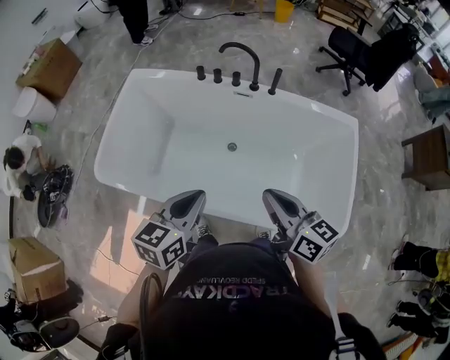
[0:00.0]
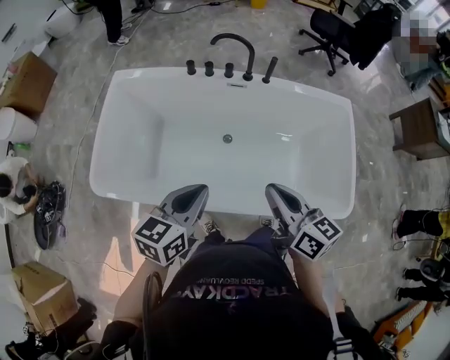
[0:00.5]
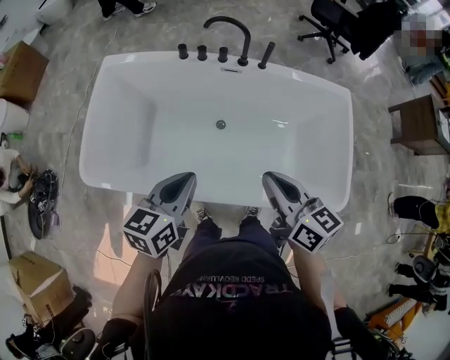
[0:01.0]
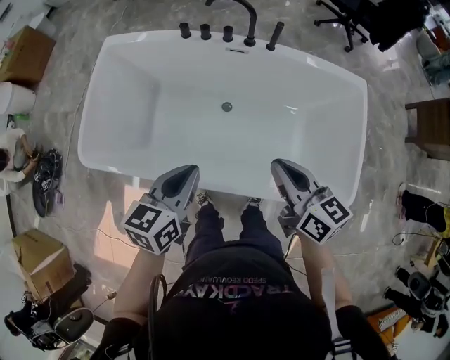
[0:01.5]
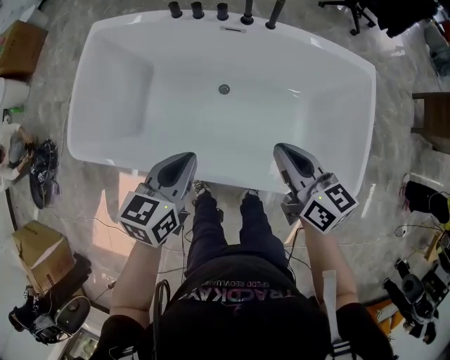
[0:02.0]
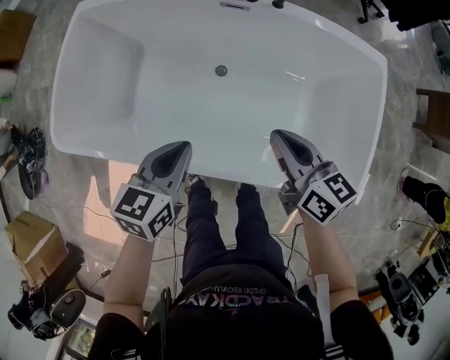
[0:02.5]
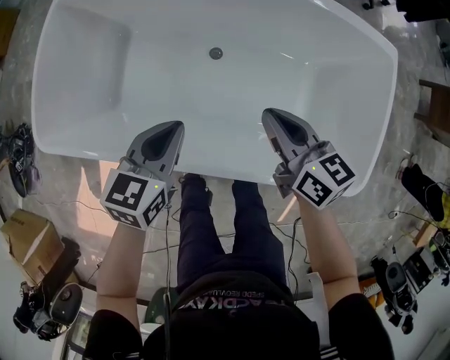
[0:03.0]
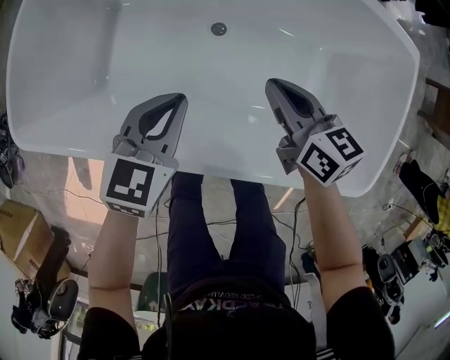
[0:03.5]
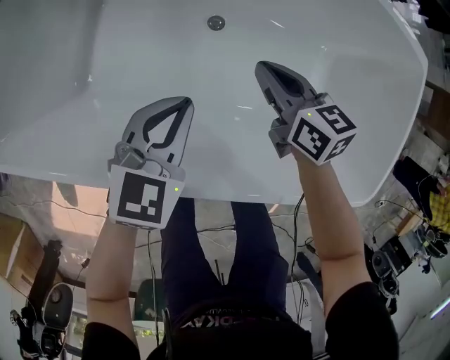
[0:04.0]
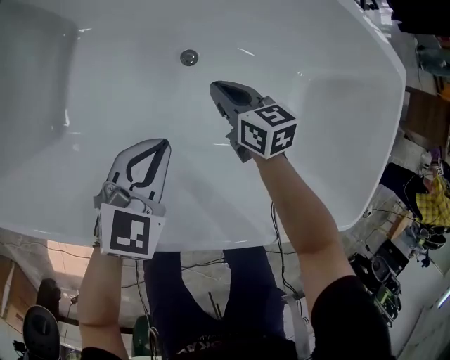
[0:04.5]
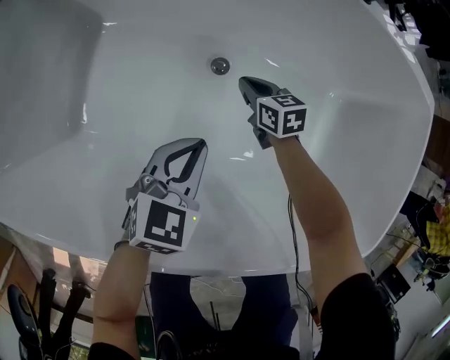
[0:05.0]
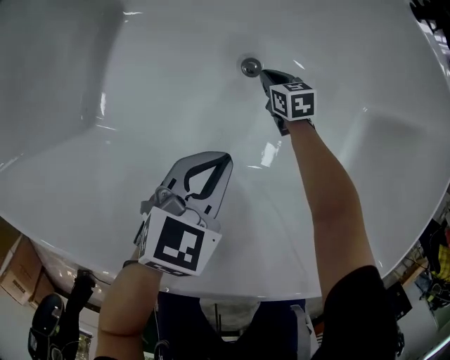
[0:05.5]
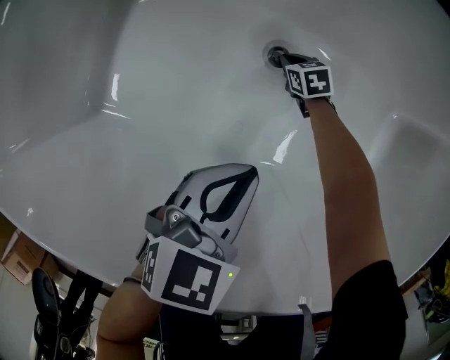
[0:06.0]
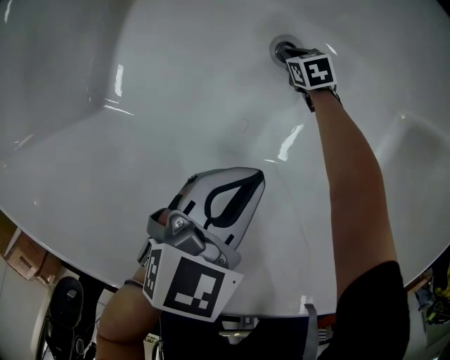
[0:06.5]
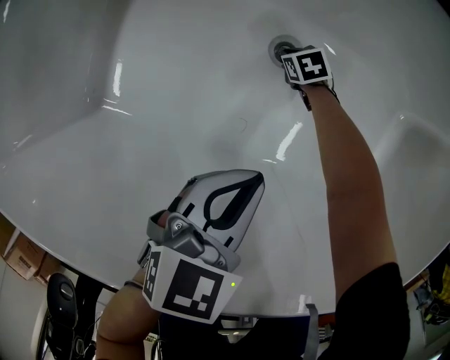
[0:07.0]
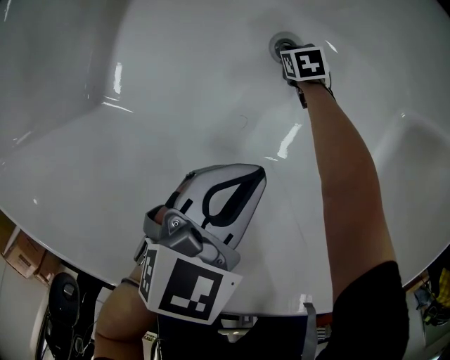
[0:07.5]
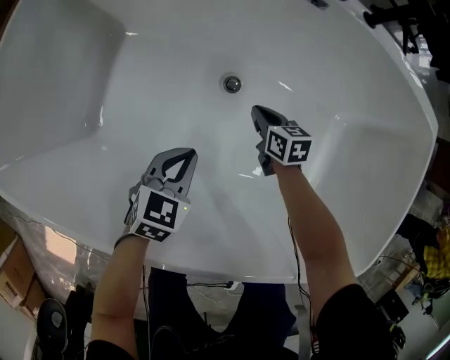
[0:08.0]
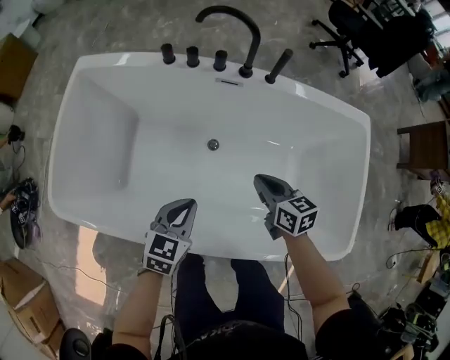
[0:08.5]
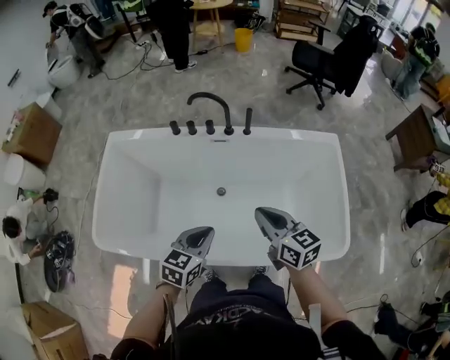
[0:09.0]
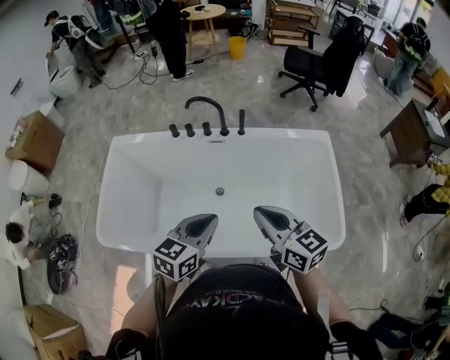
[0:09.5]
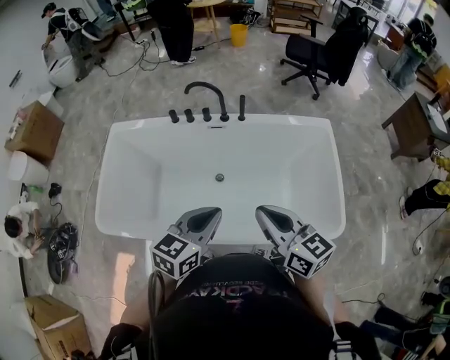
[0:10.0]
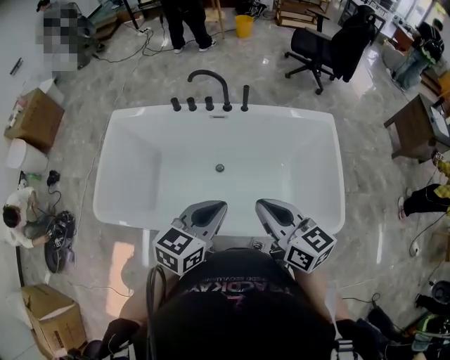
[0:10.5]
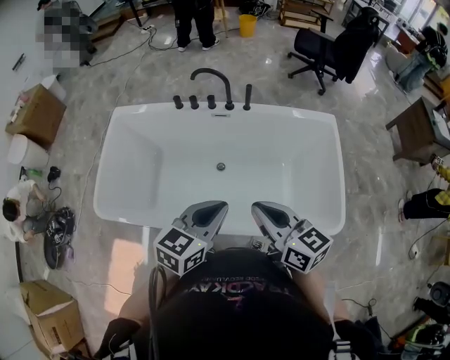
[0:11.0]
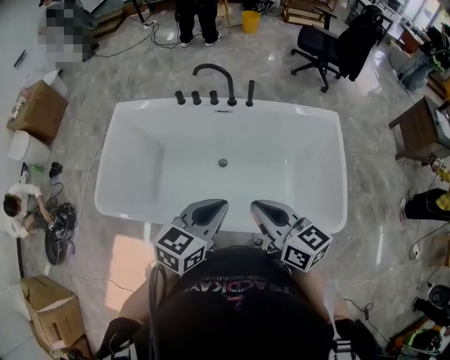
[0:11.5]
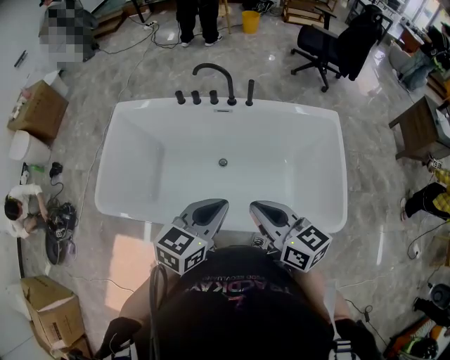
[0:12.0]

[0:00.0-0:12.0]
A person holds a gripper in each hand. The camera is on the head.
0:00.0 to 0:02.0: The two grippers go roughly 5 cm downward.
0:02.0 to 0:04.0: The left gripper travels downward by about 20 cm, and swivels approximately 20 degrees. Meanwhile the right gripper goes roughly 30 cm downward and forward.
0:04.0 to 0:06.0: The left gripper moves downward, about 10 cm. Meanwhile the right gripper moves downward, approximately 40 cm, and rotates approximately 30 degrees.
0:06.0 to 0:08.0: The left gripper changes place by roughly 5 cm; the right gripper heads upward and backward, covering about 20 cm, and swivels some 20 degrees.
0:08.0 to 0:10.0: The right gripper goes about 70 cm upward and backward, and tilts its fingers some 40 degrees upward. The left gripper moves upward, about 50 cm, and swivels approximately 30 degrees.
0:10.0 to 0:12.0: The grippers move only a little.

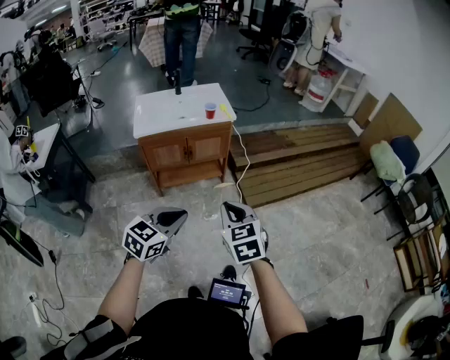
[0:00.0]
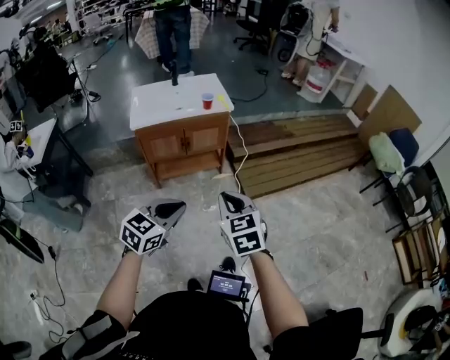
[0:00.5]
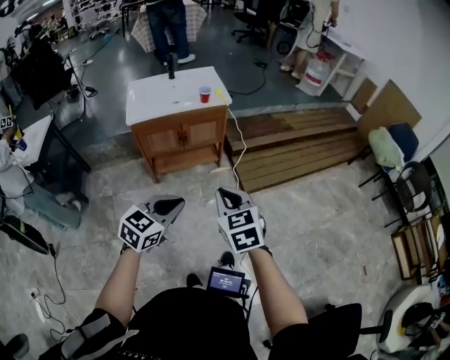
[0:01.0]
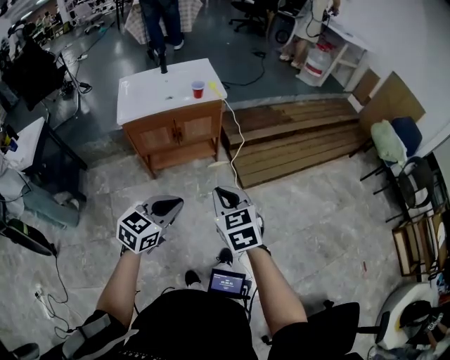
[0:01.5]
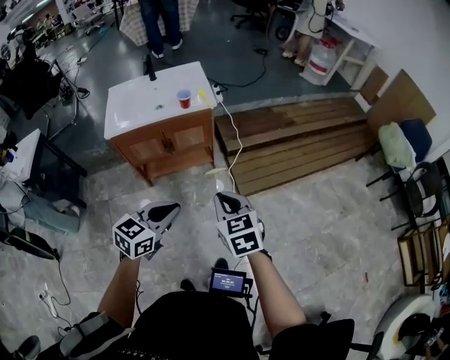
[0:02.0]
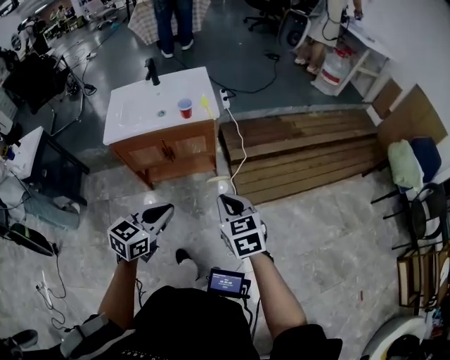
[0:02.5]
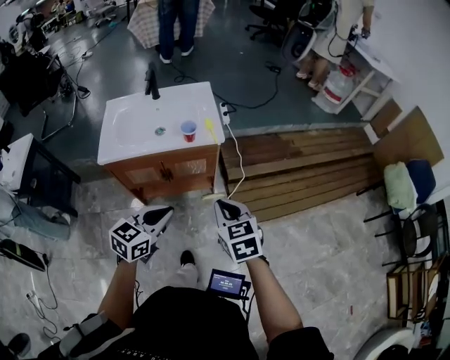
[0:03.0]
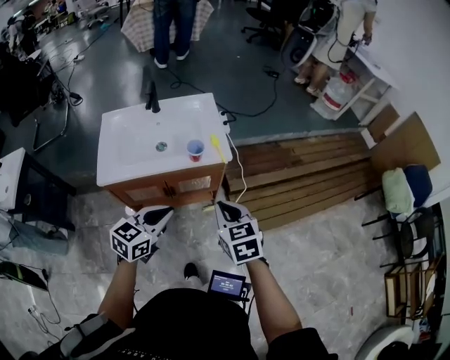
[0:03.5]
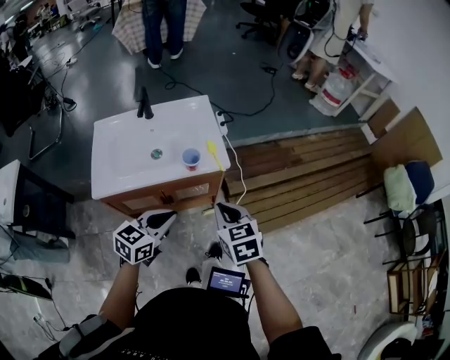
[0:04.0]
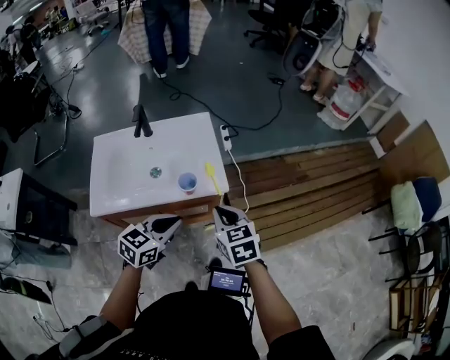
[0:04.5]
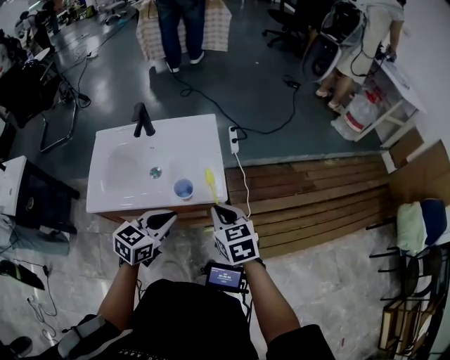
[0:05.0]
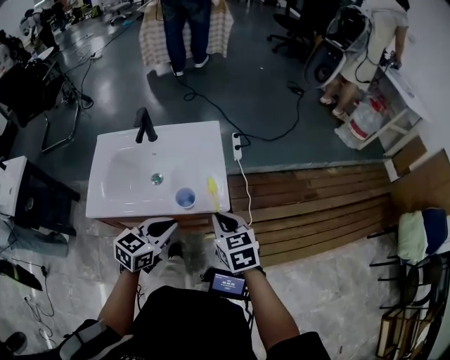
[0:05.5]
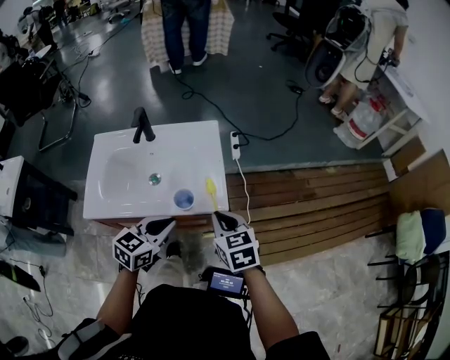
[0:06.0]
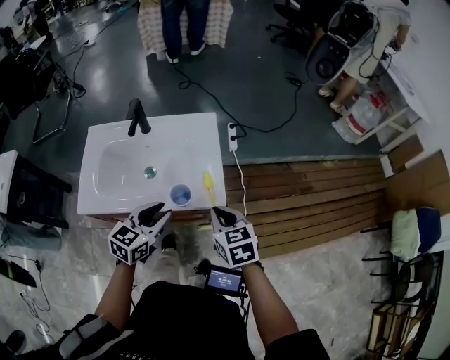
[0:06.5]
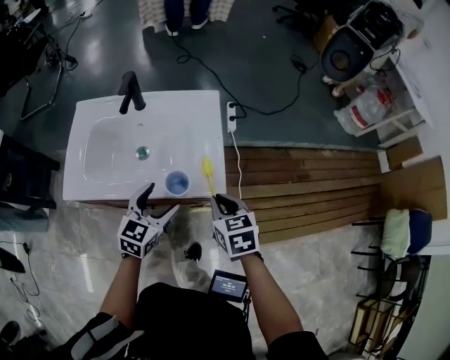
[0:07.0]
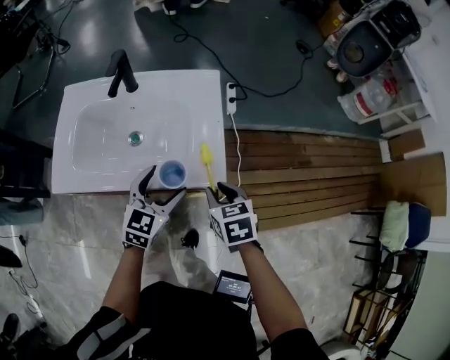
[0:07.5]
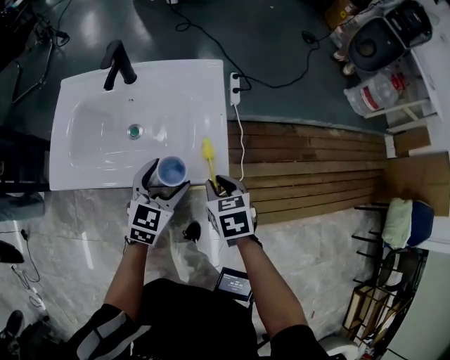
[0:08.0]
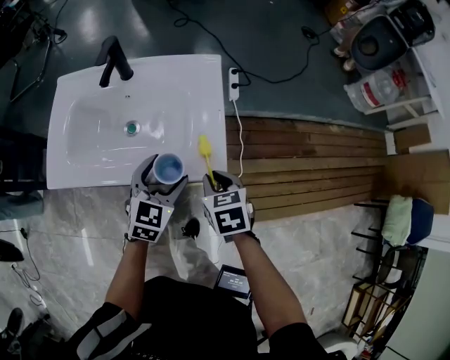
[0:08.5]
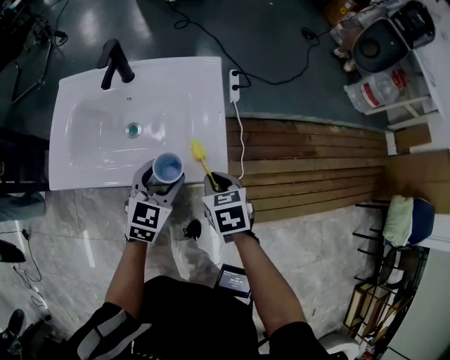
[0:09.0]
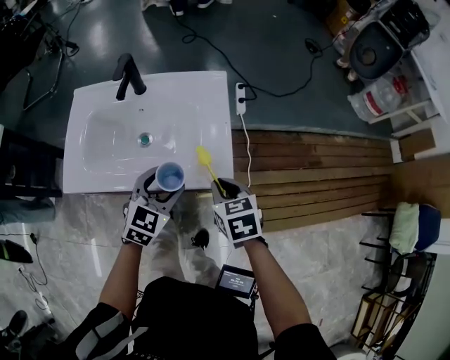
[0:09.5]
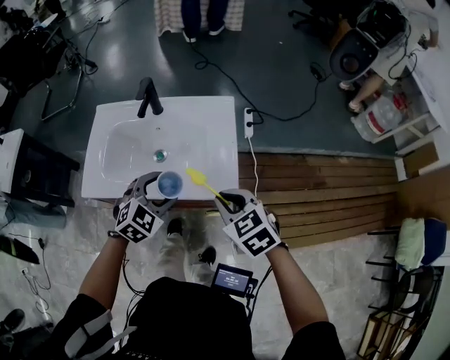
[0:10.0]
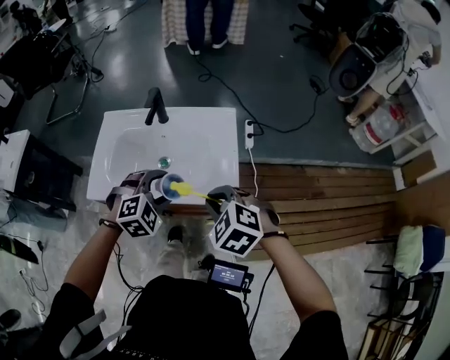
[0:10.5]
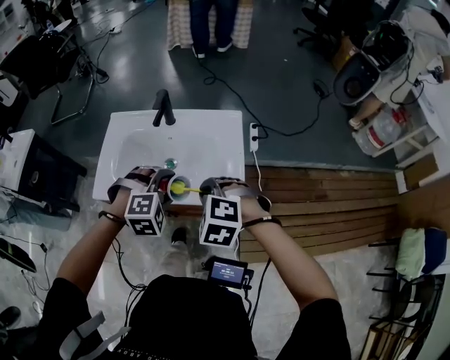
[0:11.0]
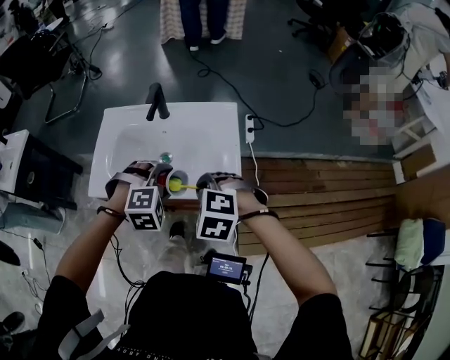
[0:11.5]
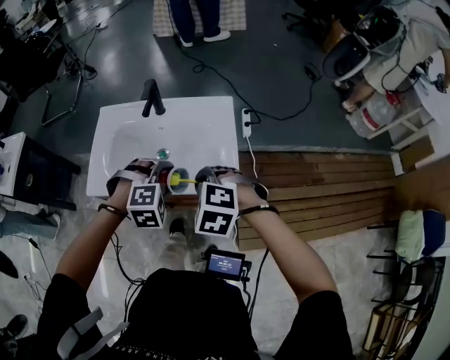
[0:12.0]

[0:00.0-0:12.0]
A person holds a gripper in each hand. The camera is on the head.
0:00.0 to 0:02.0: Both grippers travel together forward and to the right, roughly 20 cm.
0:02.0 to 0:04.0: The two grippers go about 35 cm forward.
0:04.0 to 0:06.0: Both grippers travel together forward, roughly 15 cm.
0:06.0 to 0:08.0: Both grippers move downward and forward, some 15 cm. The left gripper opens.
0:08.0 to 0:10.0: The left gripper travels upward and to the left by some 10 cm, and swivels approximately 30 degrees; the right gripper is displaced upward by about 15 cm, and turns by roughly 30 degrees.
0:10.0 to 0:12.0: The right gripper heads to the left, covering about 5 cm, and turns by some 40 degrees, while the left gripper rotates roughly 40 degrees.

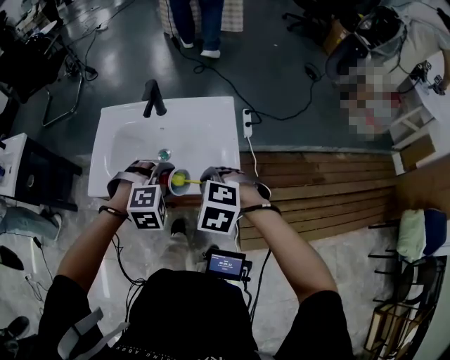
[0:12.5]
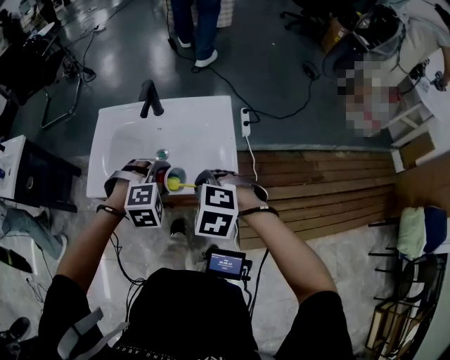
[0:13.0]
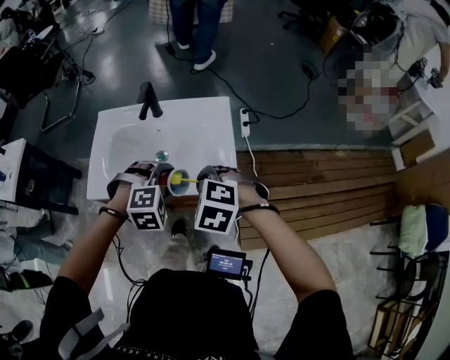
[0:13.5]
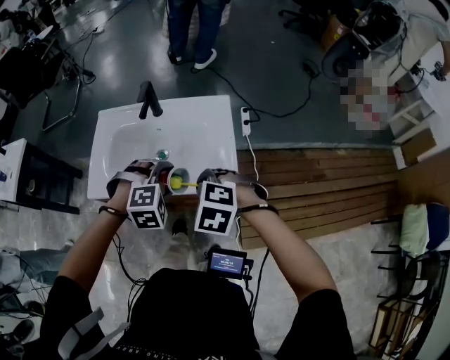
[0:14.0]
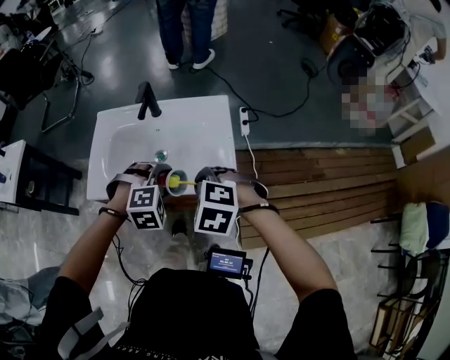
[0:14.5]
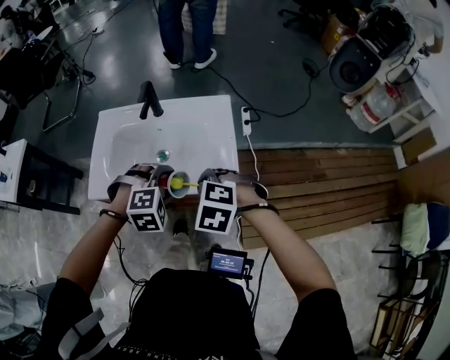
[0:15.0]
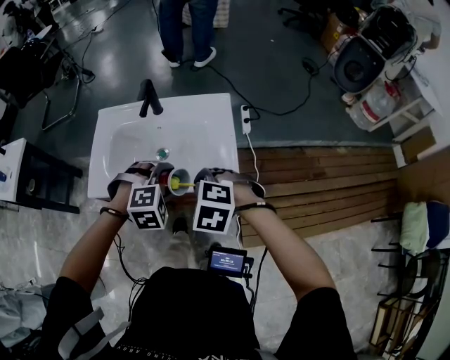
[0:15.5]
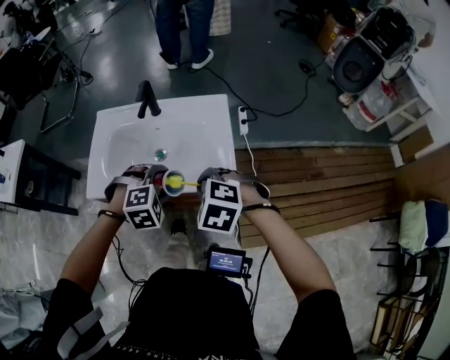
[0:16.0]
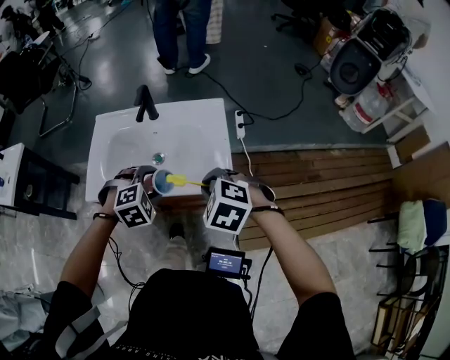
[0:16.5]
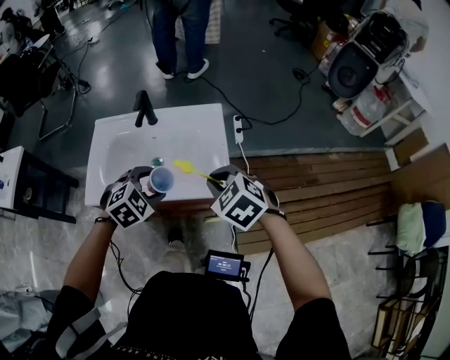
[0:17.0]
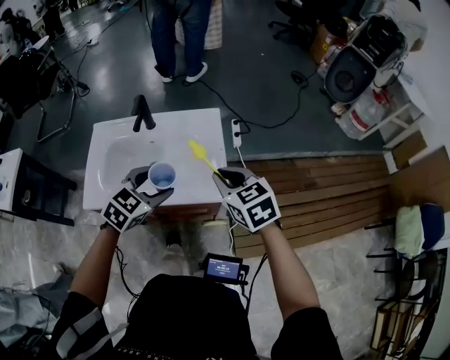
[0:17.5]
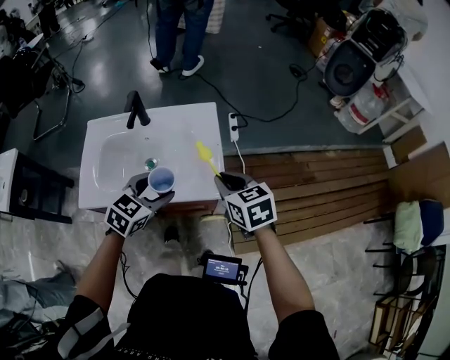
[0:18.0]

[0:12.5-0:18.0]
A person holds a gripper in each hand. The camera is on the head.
0:12.5 to 0:16.0: The grippers stay close to where they were, moving slightly.
0:16.0 to 0:18.0: The left gripper rolls counterclockwise, seen from behind, by roughly 40 degrees. Meanwhile the right gripper travels to the right and forward by some 10 cm, and rotates around the line of its fingers by approximately 50 degrees, clockwise from behind.
